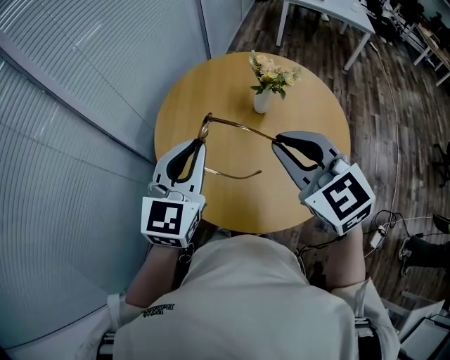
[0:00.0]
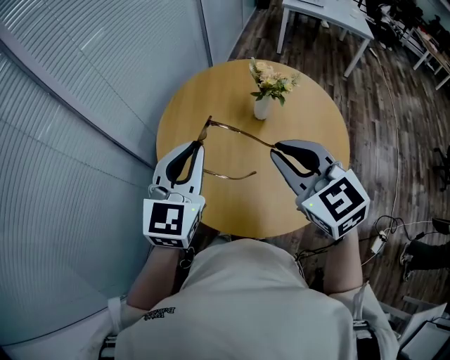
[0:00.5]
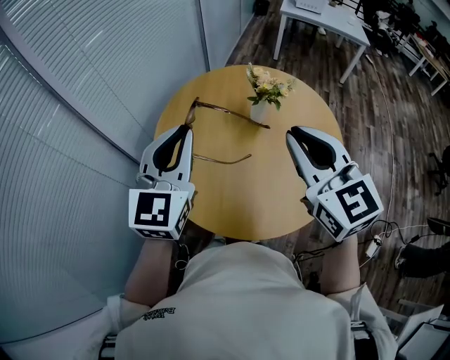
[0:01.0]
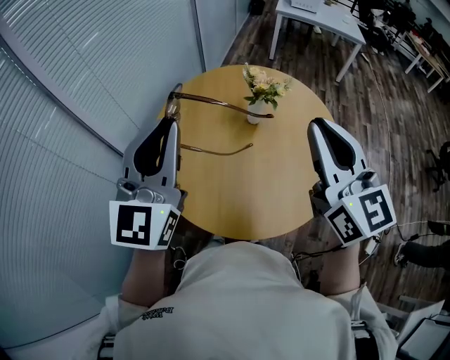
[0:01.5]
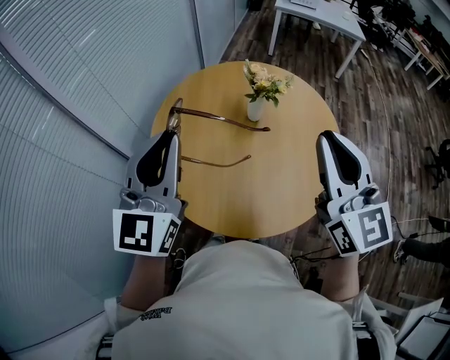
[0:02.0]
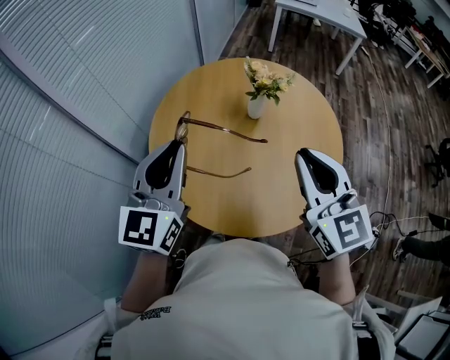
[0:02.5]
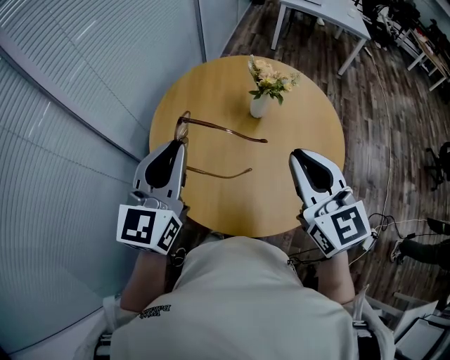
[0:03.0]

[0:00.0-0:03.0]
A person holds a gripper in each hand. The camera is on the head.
0:00.0 to 0:01.5: The right gripper shifts approximately 10 cm upward and to the right, and turns by roughly 30 degrees, while the left gripper moves upward, some 15 cm, and rotates approximately 20 degrees.
0:01.5 to 0:03.0: The two grippers go approximately 10 cm downward.

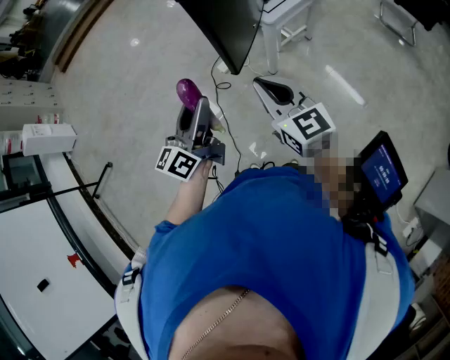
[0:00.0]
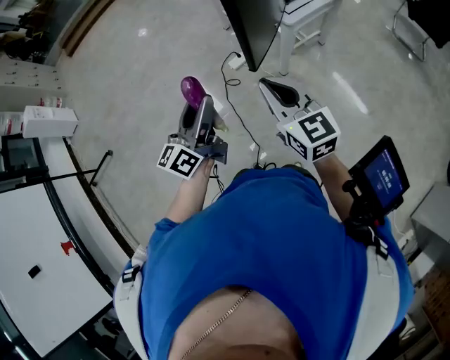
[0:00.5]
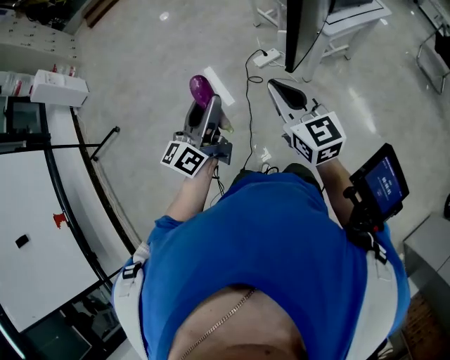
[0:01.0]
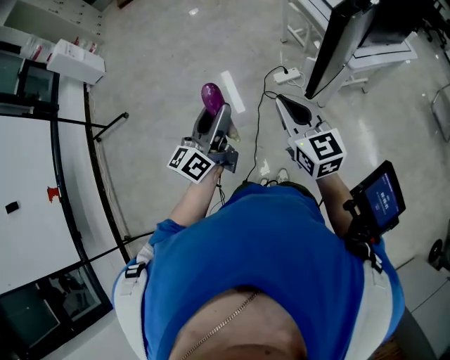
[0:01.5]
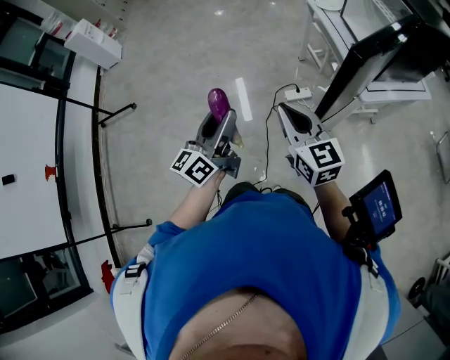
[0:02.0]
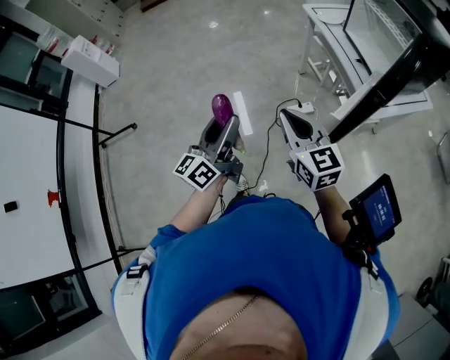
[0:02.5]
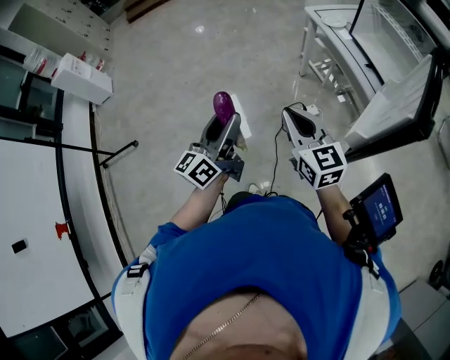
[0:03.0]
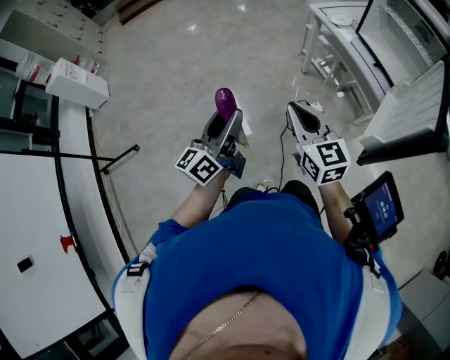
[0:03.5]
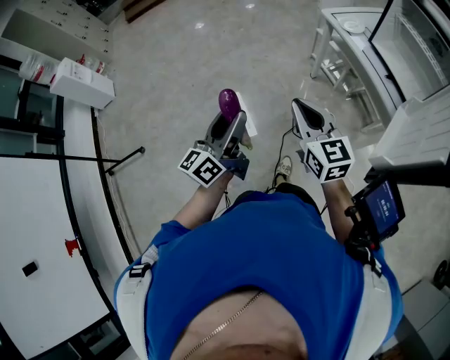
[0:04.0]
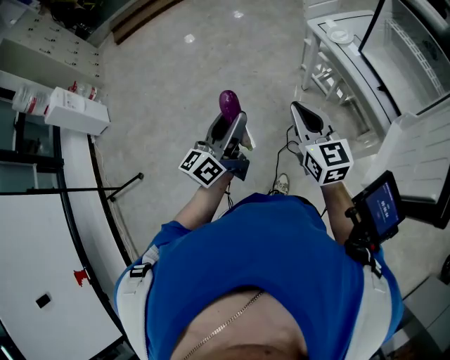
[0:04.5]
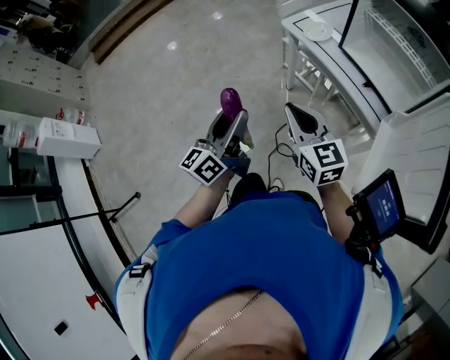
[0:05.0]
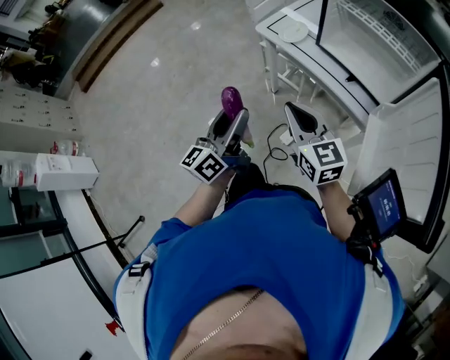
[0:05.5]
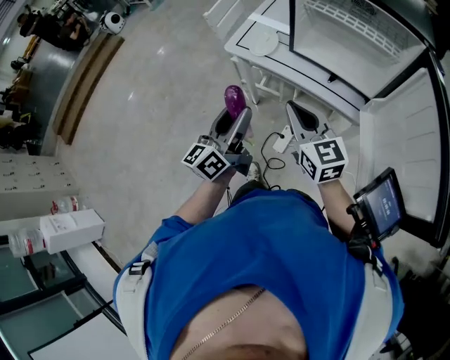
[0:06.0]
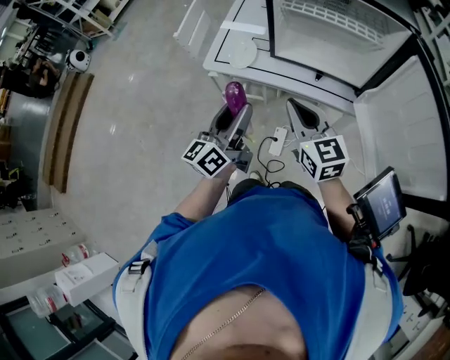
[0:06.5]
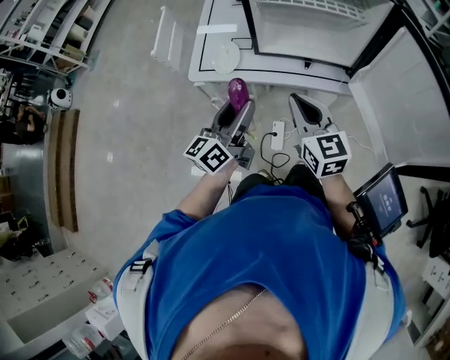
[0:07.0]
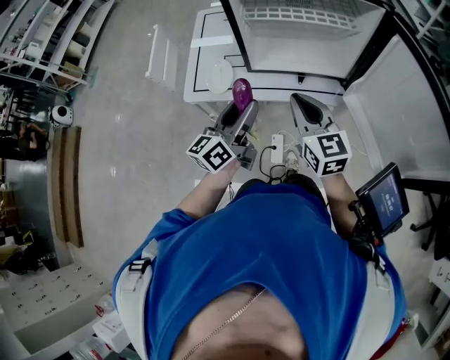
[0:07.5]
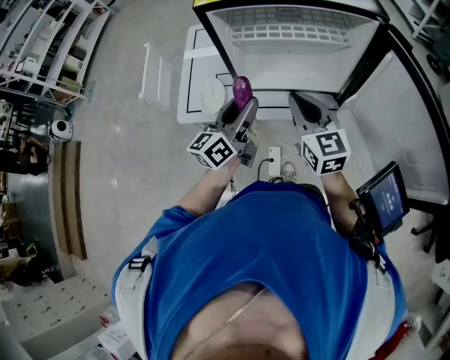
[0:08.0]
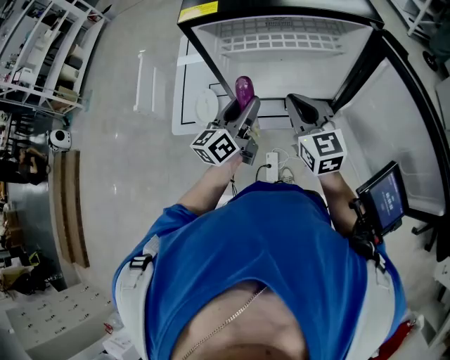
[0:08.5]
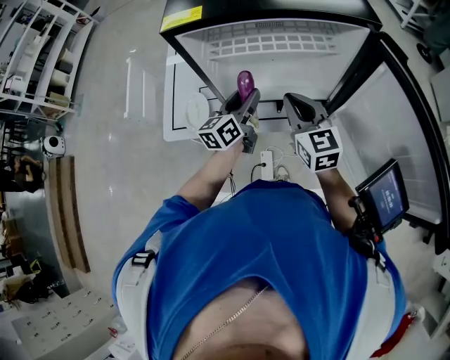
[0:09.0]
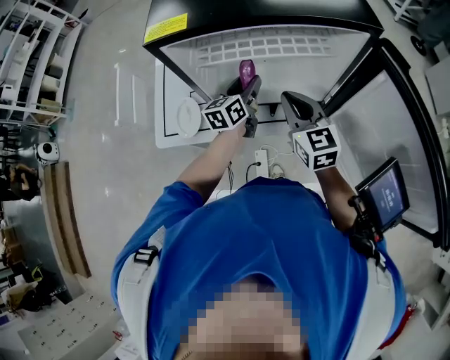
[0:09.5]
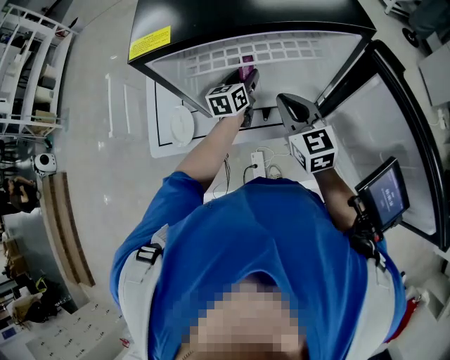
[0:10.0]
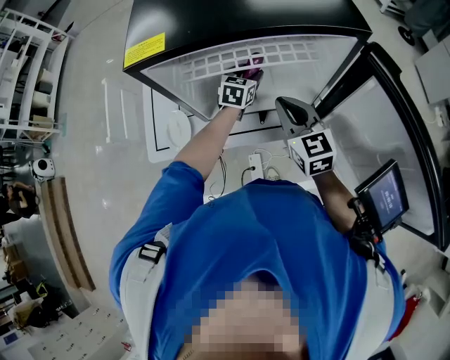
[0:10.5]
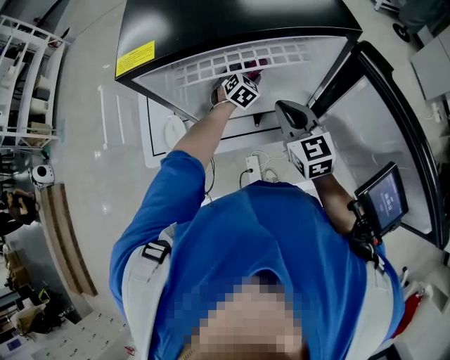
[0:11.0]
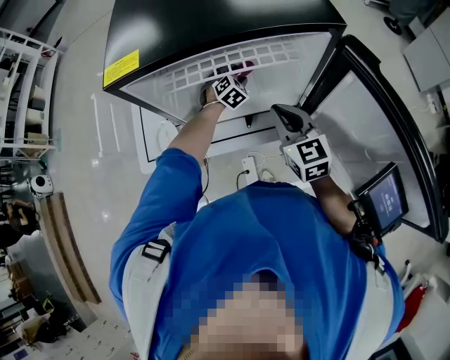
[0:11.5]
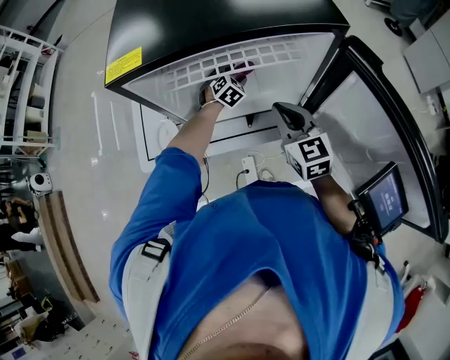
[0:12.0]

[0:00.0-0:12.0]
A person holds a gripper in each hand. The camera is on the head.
0:00.0 to 0:02.0: The right gripper moves to the left and forward, roughly 15 cm, and swivels some 20 degrees; the left gripper moves to the left, roughly 15 cm, and swivels approximately 20 degrees.
0:02.0 to 0:04.0: Both grippers move forward and to the left, about 35 cm.
0:04.0 to 0:06.0: The right gripper moves roughly 35 cm, and rotates roughly 30 degrees. The left gripper shifts by approximately 40 cm, and changes its angle by approximately 40 degrees.
0:06.0 to 0:08.0: The right gripper ends up approximately 20 cm from where it was, and swivels approximately 30 degrees, while the left gripper ends up about 25 cm from where it was, and changes its angle by some 30 degrees.
0:08.0 to 0:10.0: The left gripper heads forward, downward and to the right, covering about 30 cm, and swivels some 30 degrees. The right gripper is displaced forward and to the right by roughly 10 cm.
0:10.0 to 0:12.0: The left gripper moves downward and forward, about 10 cm, and rotates around the line of its fingers by roughly 60 degrees, clockwise from behind.

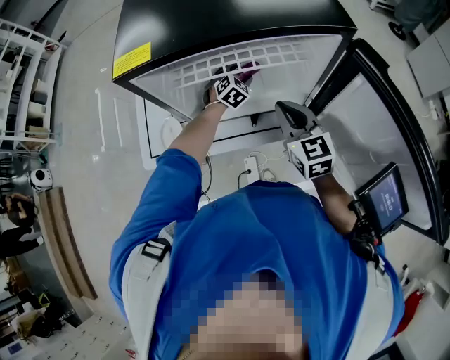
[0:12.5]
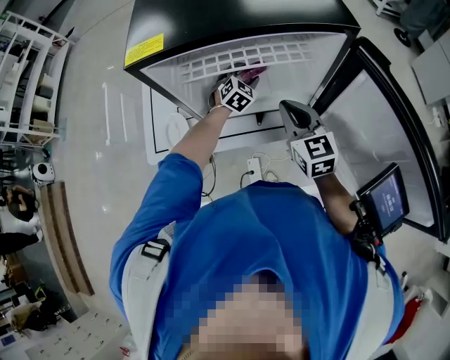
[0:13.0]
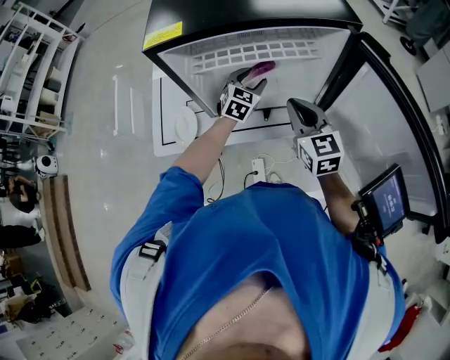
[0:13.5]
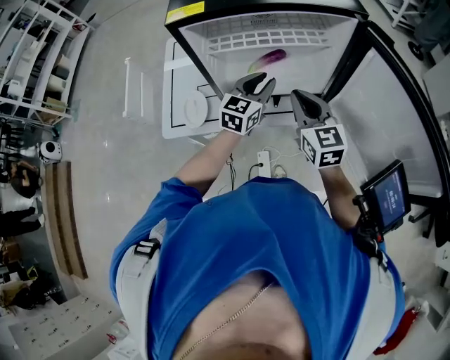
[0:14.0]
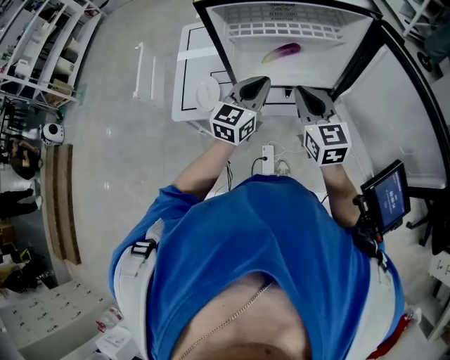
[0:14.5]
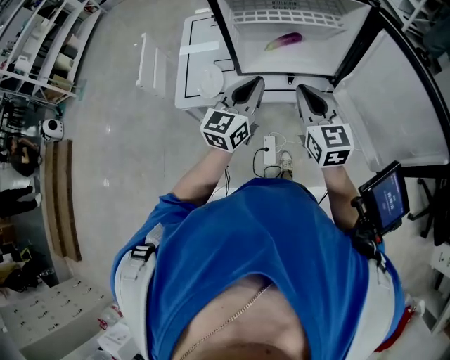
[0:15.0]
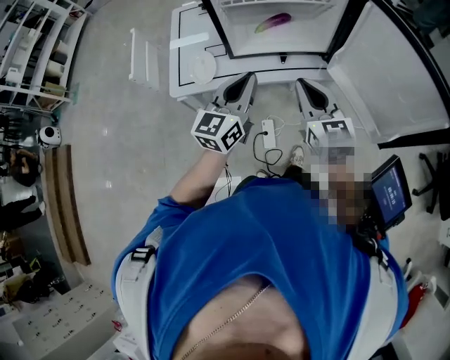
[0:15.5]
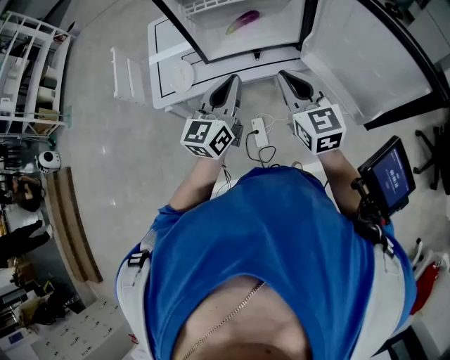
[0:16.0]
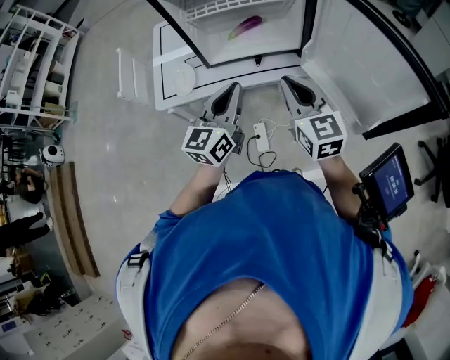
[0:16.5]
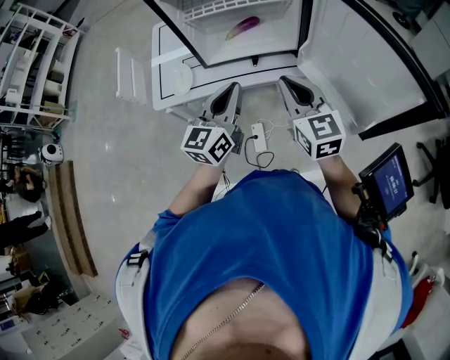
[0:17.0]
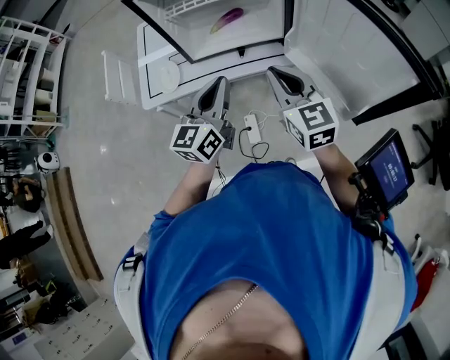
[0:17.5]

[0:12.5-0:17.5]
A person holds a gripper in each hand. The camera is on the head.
0:12.5 to 0:15.0: The left gripper is displaced backward and upward by approximately 40 cm, points its fingers roughly 40 degrees further upward, and closes; the right gripper goes about 15 cm backward and to the left.
0:15.0 to 0:17.5: The left gripper goes some 10 cm backward and to the right. Meanwhile the right gripper is displaced to the right and backward by some 10 cm.

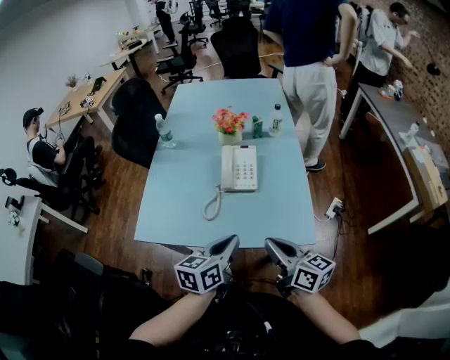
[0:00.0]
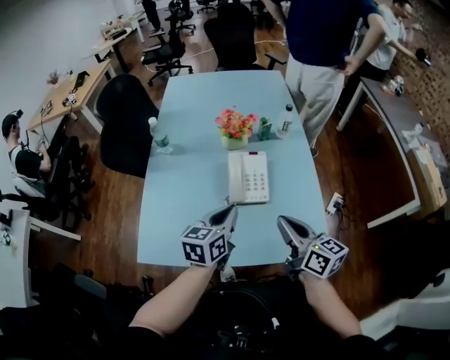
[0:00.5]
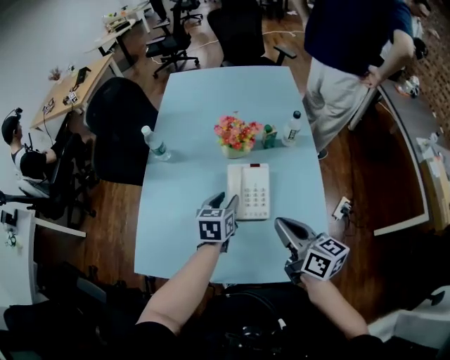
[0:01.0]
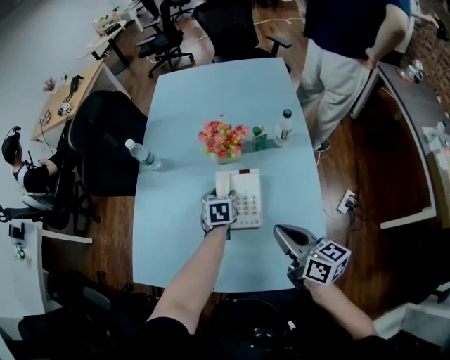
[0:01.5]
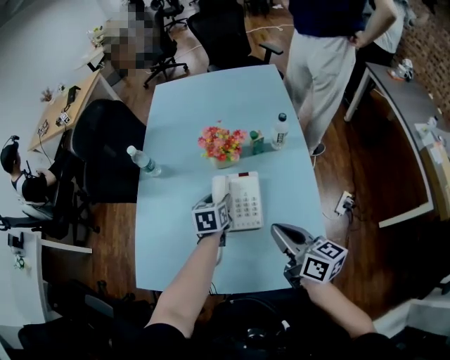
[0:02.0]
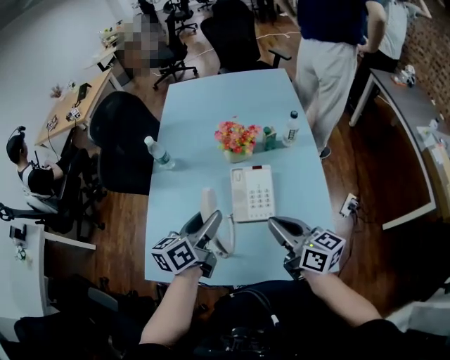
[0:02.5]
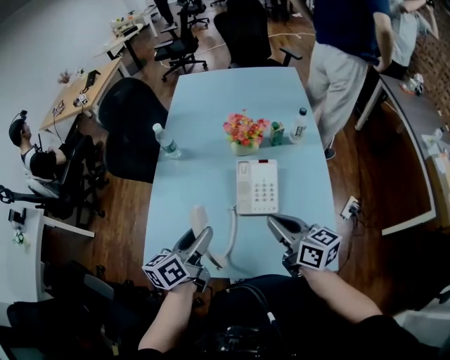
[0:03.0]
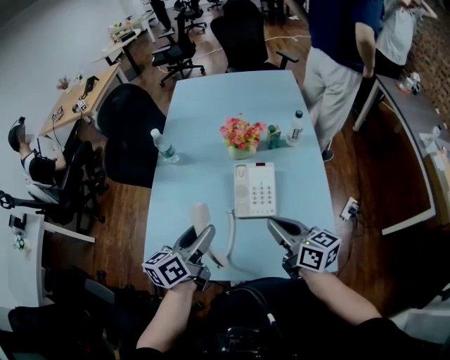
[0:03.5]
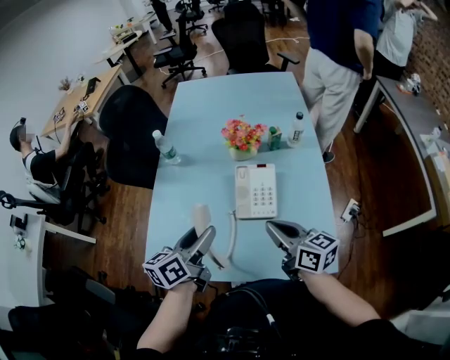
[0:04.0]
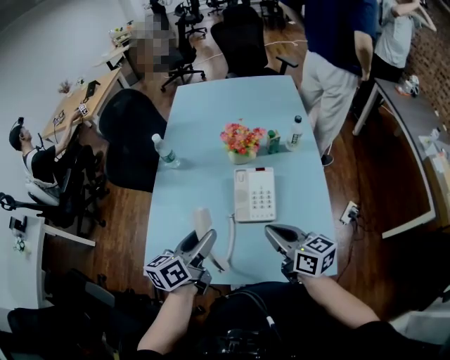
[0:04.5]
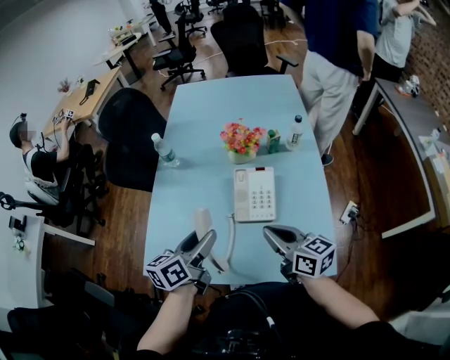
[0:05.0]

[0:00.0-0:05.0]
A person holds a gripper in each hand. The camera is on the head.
0:00.0 to 0:02.5: The grippers both shift forward by some 25 cm. The left gripper opens.
0:02.5 to 0:05.0: The left gripper is displaced backward by approximately 5 cm.

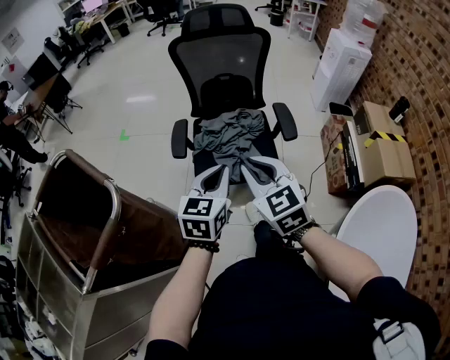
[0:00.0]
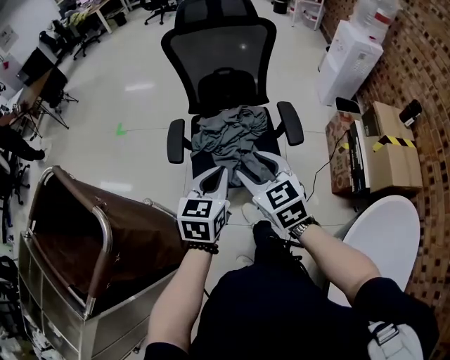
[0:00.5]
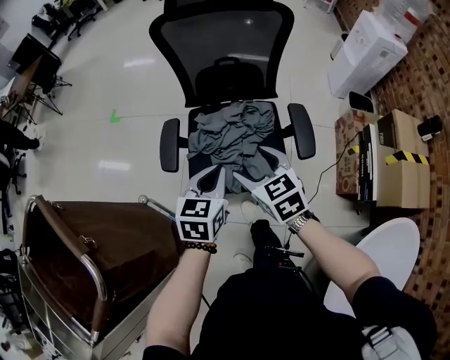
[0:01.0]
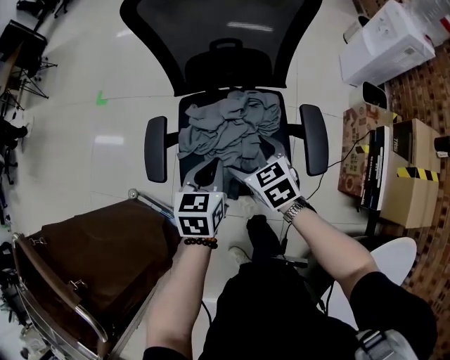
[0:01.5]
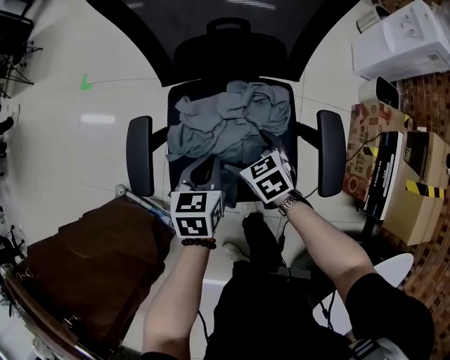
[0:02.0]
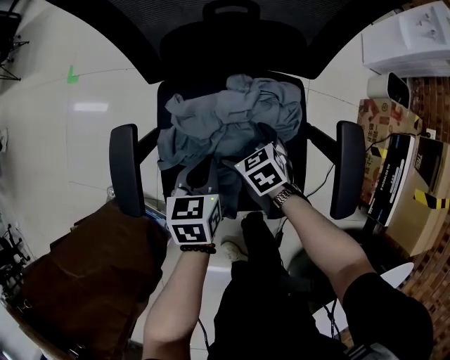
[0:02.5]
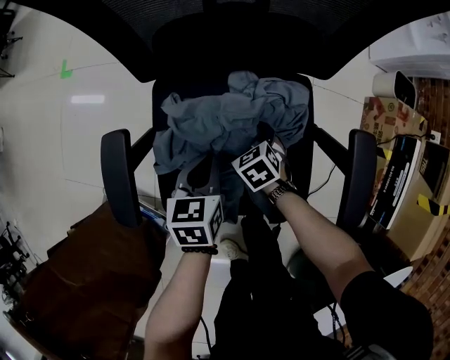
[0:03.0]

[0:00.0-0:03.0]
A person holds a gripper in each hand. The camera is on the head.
0:00.0 to 0:01.5: The pair of grippers is taken forward, some 40 cm. Both grippers travel together downward, approximately 35 cm. The left gripper rotates roughly 30 degrees; the right gripper rotates approximately 40 degrees, and opens up.
0:01.5 to 0:03.0: The left gripper heads downward and forward, covering about 30 cm, while the right gripper heads downward, covering approximately 35 cm, and changes its angle by about 20 degrees.
